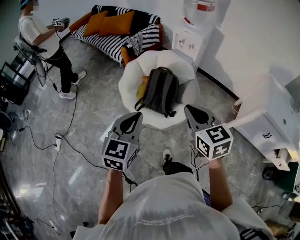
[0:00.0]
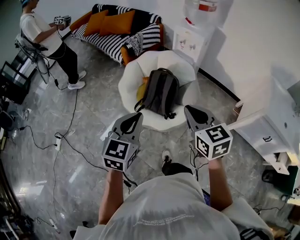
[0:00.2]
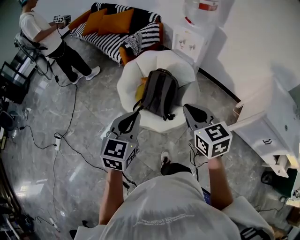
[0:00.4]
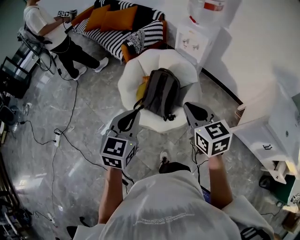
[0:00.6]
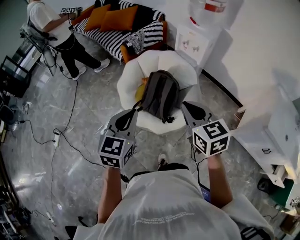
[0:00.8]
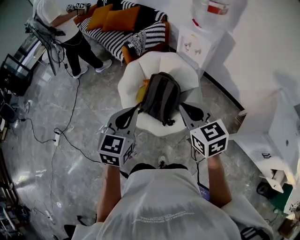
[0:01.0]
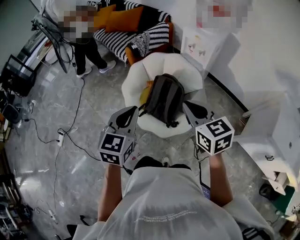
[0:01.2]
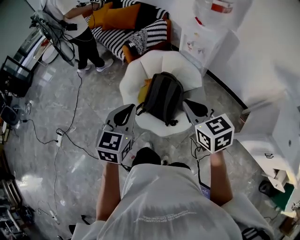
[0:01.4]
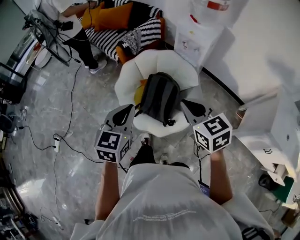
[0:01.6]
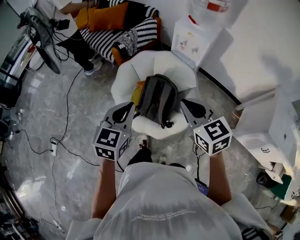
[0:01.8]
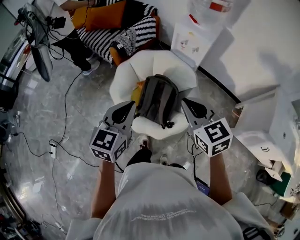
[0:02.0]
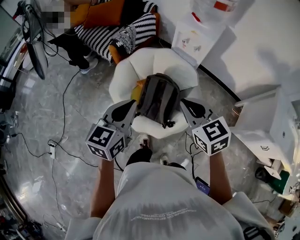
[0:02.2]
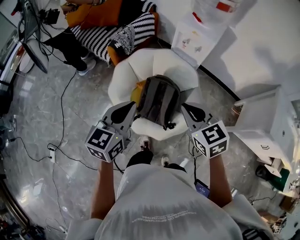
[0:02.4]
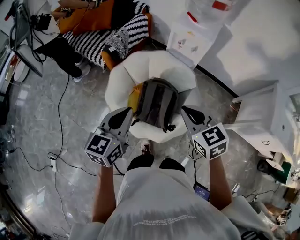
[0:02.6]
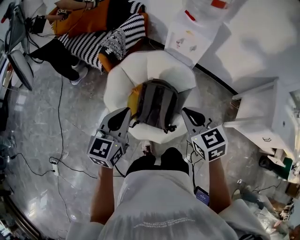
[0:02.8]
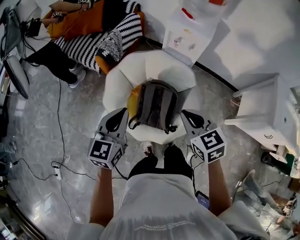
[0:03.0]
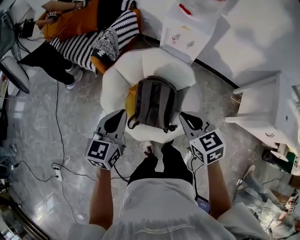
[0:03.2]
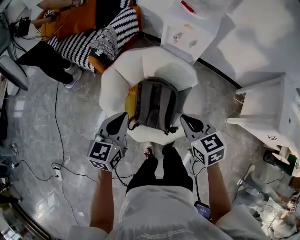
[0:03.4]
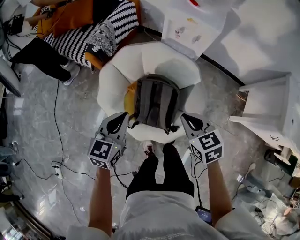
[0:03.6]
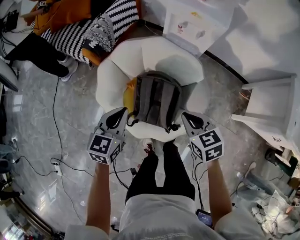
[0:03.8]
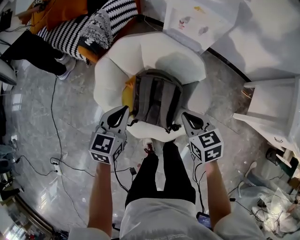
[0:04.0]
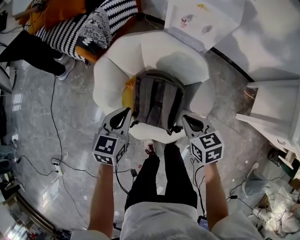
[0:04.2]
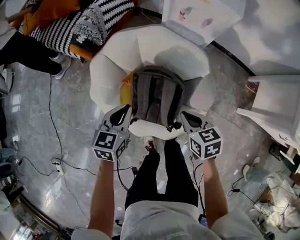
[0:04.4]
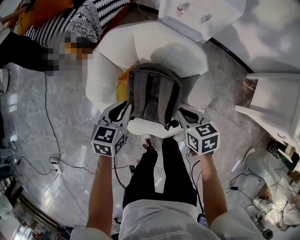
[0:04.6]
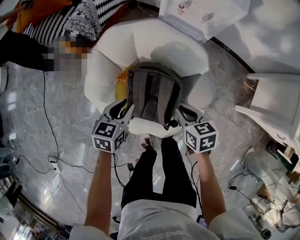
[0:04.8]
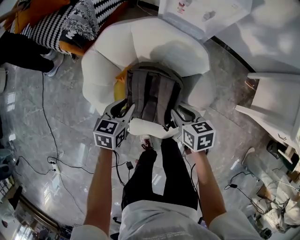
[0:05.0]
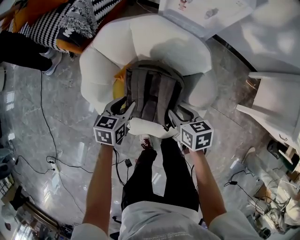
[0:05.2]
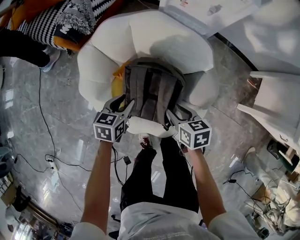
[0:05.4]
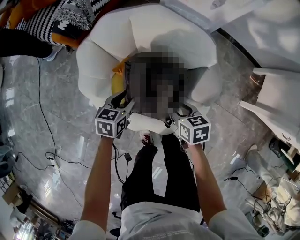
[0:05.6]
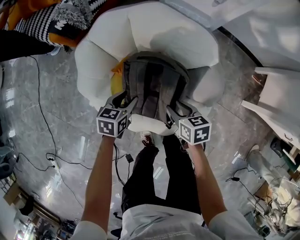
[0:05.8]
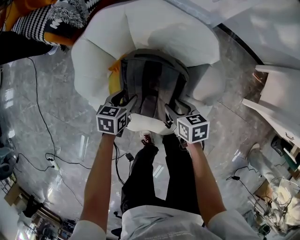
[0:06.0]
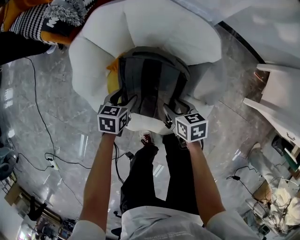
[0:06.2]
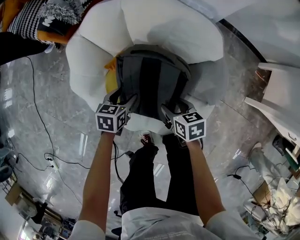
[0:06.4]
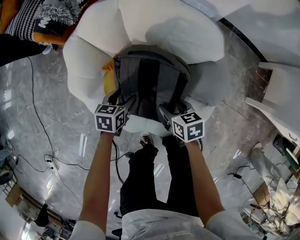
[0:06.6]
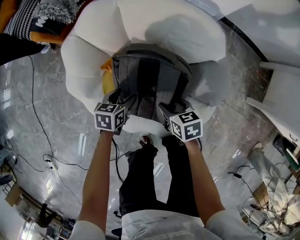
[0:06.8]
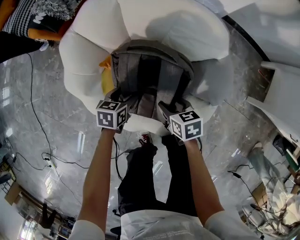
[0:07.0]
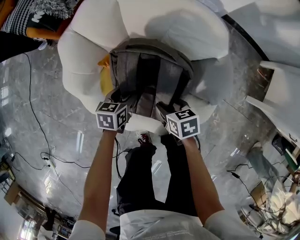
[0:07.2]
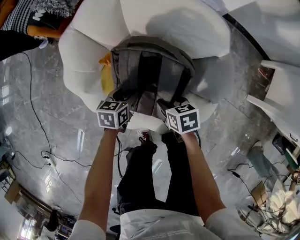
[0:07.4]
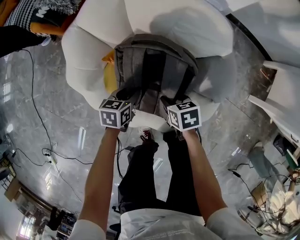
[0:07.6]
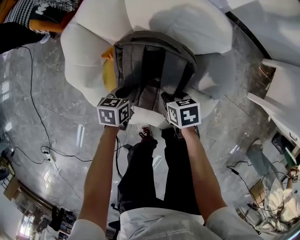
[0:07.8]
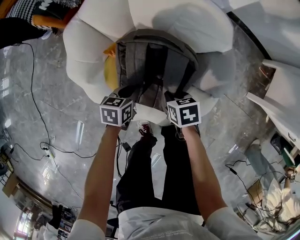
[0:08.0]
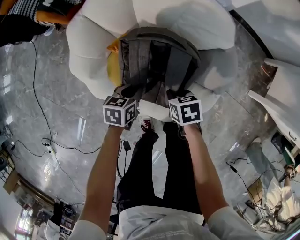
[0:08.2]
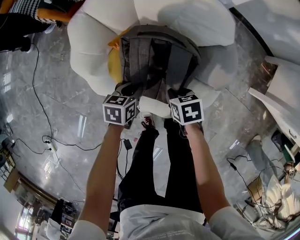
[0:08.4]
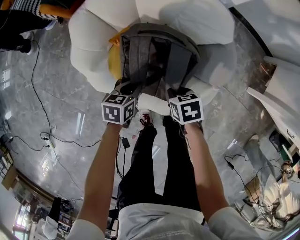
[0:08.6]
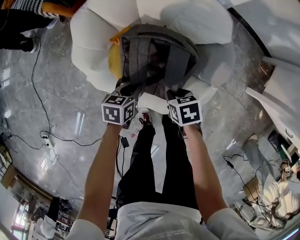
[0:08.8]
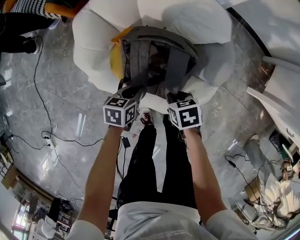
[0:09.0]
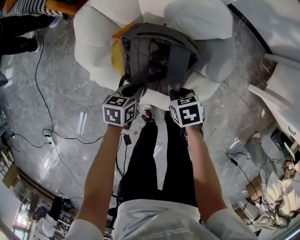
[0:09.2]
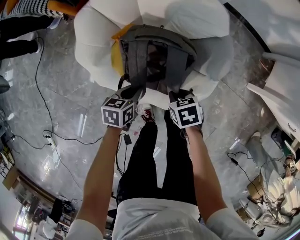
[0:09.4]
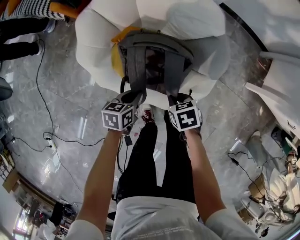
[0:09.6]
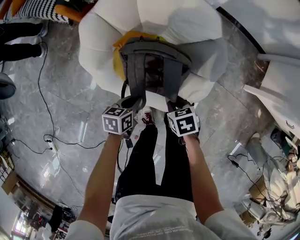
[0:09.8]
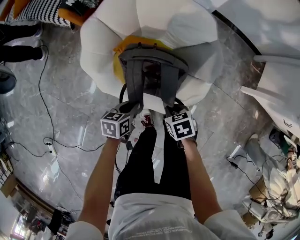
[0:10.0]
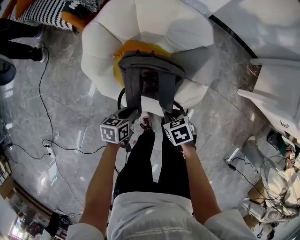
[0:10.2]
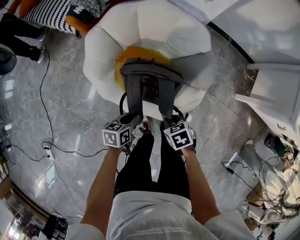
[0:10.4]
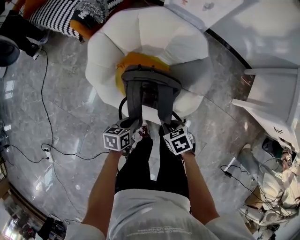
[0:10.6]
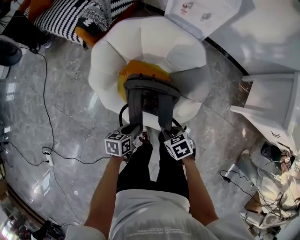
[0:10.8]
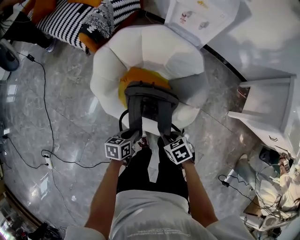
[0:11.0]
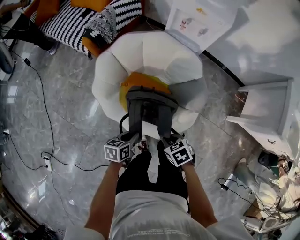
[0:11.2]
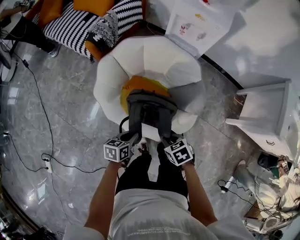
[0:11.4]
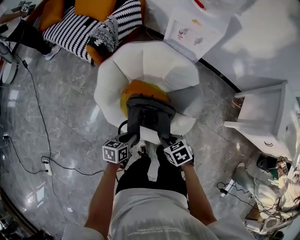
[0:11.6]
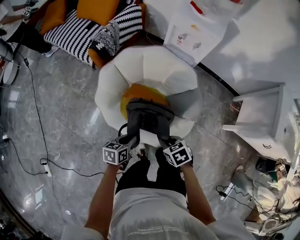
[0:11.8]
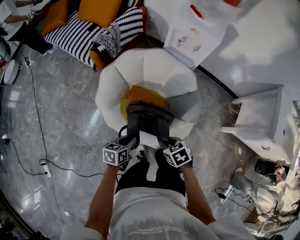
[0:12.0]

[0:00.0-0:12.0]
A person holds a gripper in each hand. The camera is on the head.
0:00.0 to 0:01.6: Both grippers move forward, some 20 cm.
0:01.6 to 0:03.0: The right gripper goes about 15 cm forward, downward and to the left. Meanwhile the left gripper is displaced forward and to the left by roughly 20 cm.
0:03.0 to 0:04.4: The right gripper is displaced downward by roughly 25 cm, and changes its angle by about 30 degrees; the left gripper goes about 30 cm downward and forward, and rotates roughly 20 degrees.
0:04.4 to 0:06.0: Both grippers travel together downward, about 20 cm. The left gripper opens, while the right gripper opens.
0:06.0 to 0:07.6: Both grippers move downward, some 10 cm.
0:07.6 to 0:09.0: The left gripper moves backward and upward, some 10 cm; the right gripper is displaced upward and backward by about 10 cm, and closes its fingers.
0:09.0 to 0:10.4: The two grippers go some 15 cm backward and upward.
0:10.4 to 0:12.0: Both grippers move upward, some 15 cm.

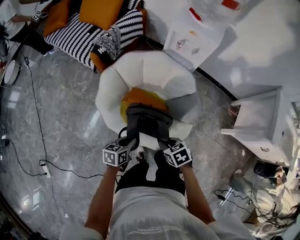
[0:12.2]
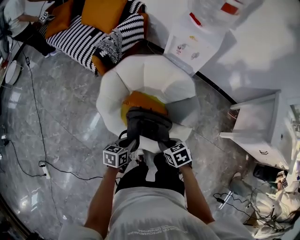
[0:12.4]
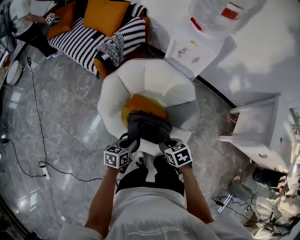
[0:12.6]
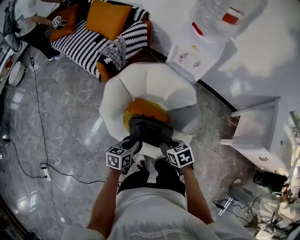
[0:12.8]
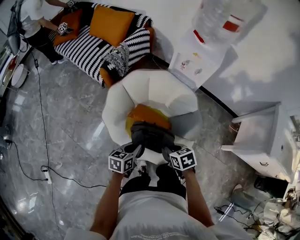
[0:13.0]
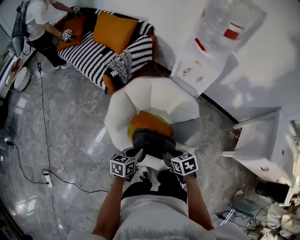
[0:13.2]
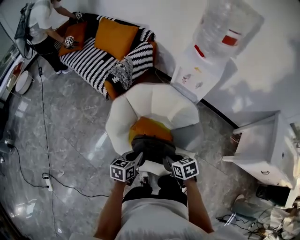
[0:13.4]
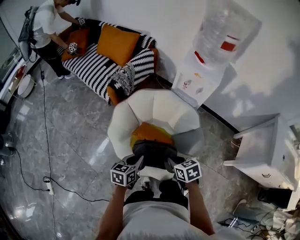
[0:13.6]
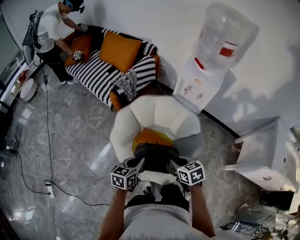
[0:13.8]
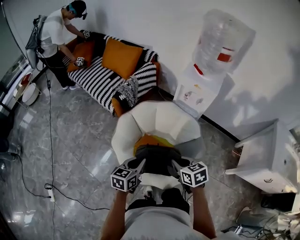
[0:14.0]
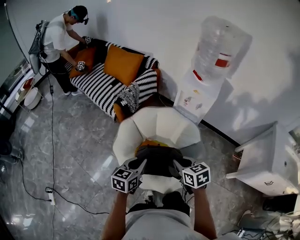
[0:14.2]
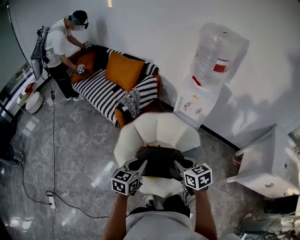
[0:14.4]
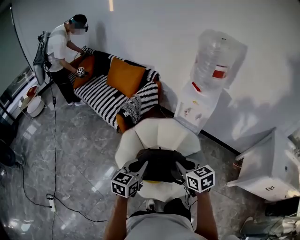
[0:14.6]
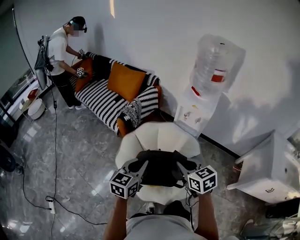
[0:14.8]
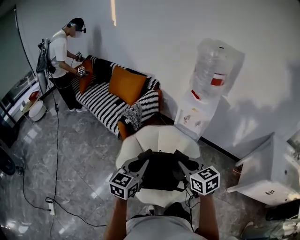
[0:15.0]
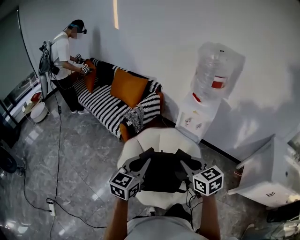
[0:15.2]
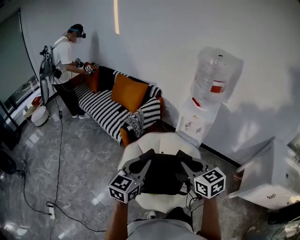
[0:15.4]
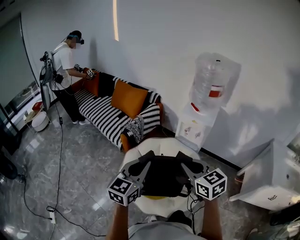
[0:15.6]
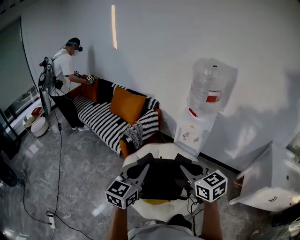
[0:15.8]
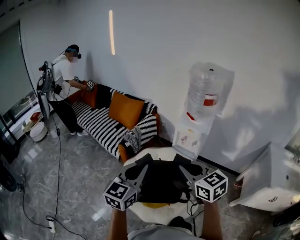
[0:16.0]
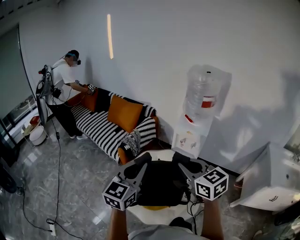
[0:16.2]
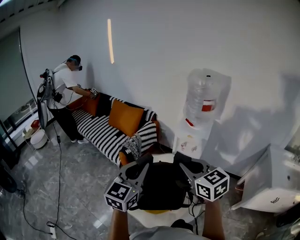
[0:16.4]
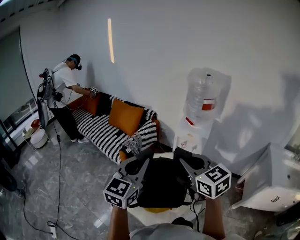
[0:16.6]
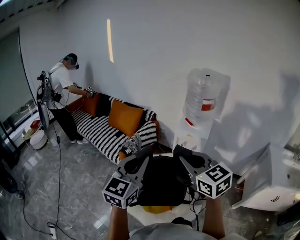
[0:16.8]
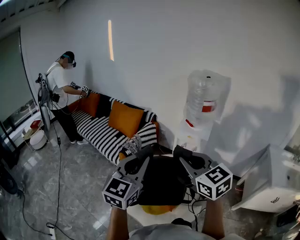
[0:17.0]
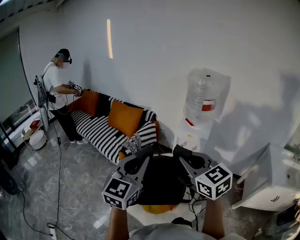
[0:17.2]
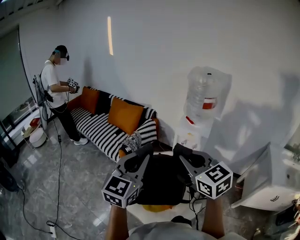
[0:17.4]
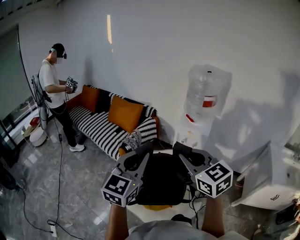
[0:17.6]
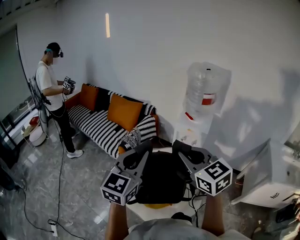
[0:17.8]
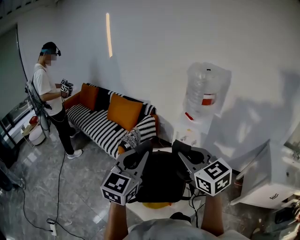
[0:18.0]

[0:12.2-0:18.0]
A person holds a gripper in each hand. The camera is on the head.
0:12.2 to 0:13.6: The grippers both shift upward and forward by approximately 10 cm.
0:13.6 to 0:15.0: Both grippers move upward, roughly 25 cm. The right gripper changes its angle by some 30 degrees; the left gripper changes its angle by some 30 degrees.
0:15.0 to 0:16.6: The two grippers go approximately 20 cm upward. The left gripper rotates about 20 degrees.
0:16.6 to 0:18.0: The grippers move only a little.

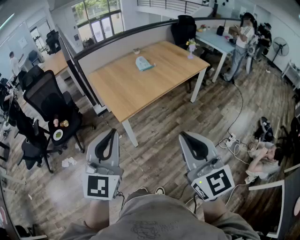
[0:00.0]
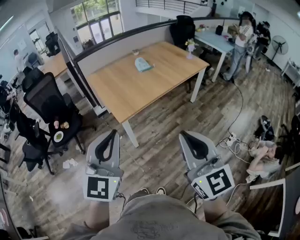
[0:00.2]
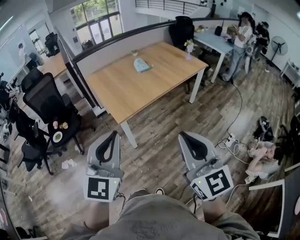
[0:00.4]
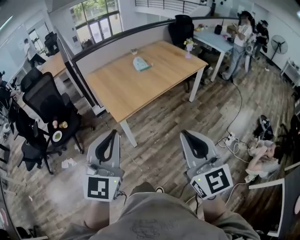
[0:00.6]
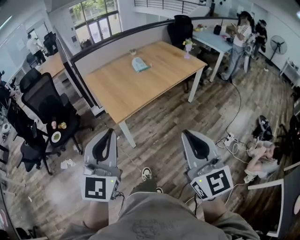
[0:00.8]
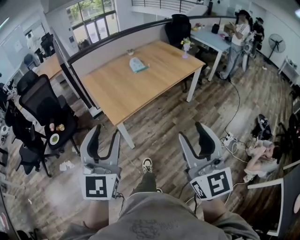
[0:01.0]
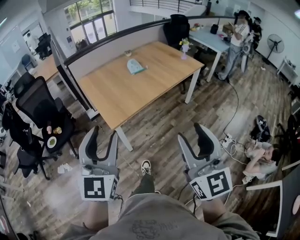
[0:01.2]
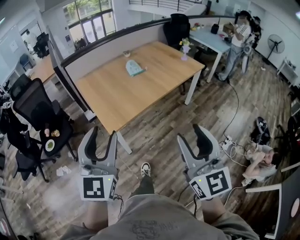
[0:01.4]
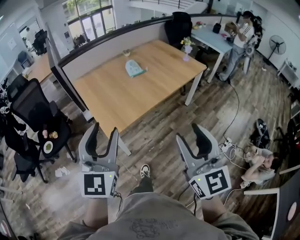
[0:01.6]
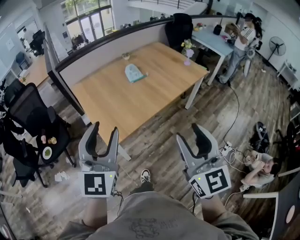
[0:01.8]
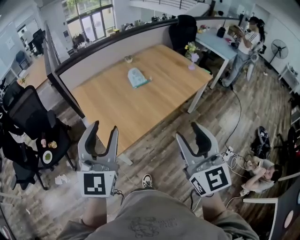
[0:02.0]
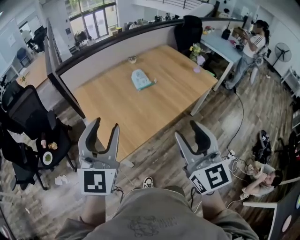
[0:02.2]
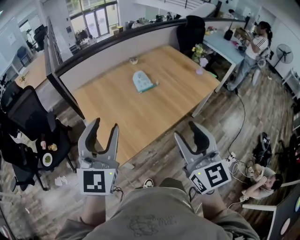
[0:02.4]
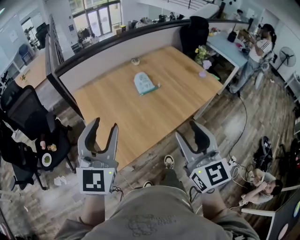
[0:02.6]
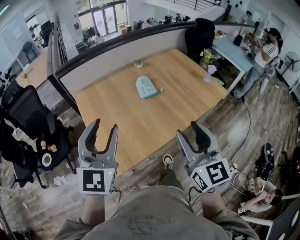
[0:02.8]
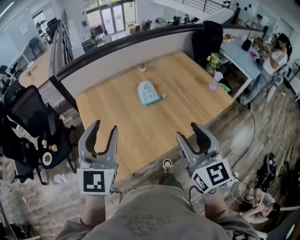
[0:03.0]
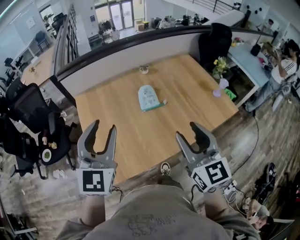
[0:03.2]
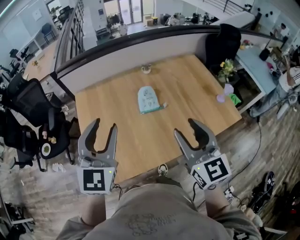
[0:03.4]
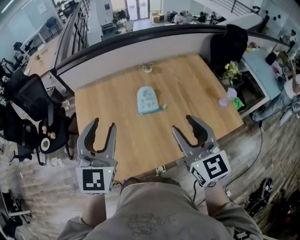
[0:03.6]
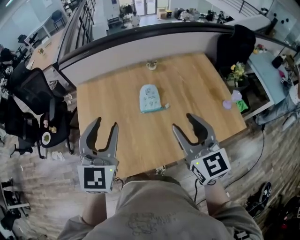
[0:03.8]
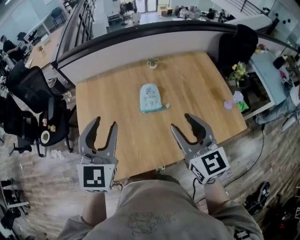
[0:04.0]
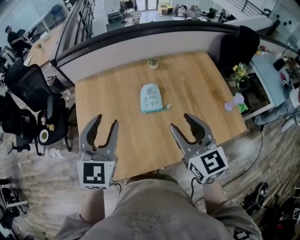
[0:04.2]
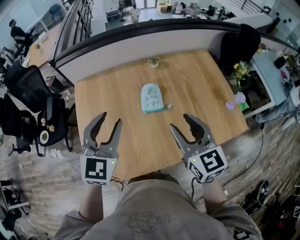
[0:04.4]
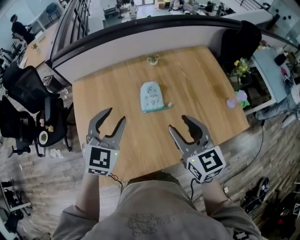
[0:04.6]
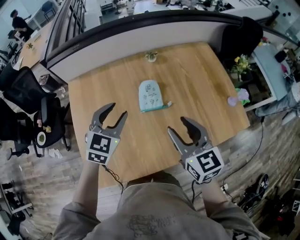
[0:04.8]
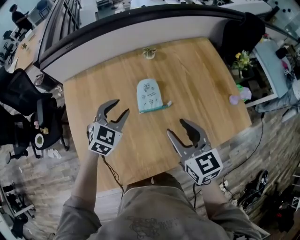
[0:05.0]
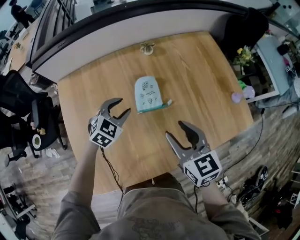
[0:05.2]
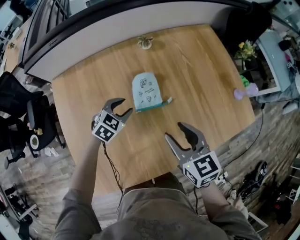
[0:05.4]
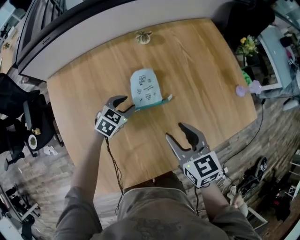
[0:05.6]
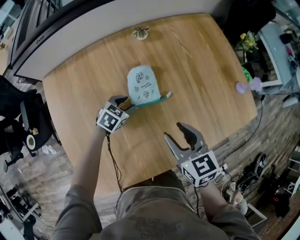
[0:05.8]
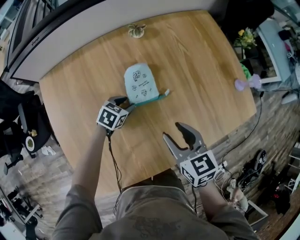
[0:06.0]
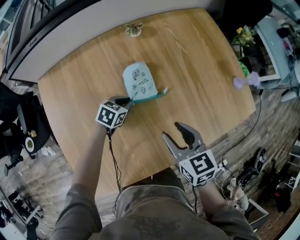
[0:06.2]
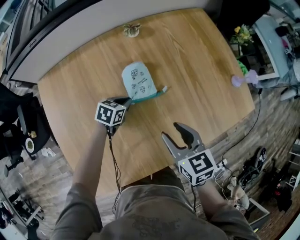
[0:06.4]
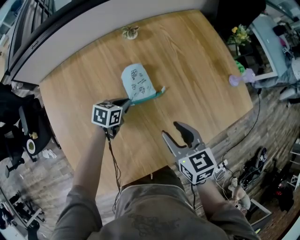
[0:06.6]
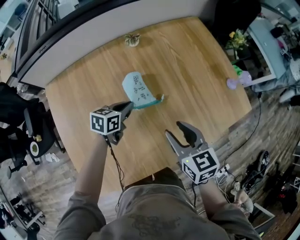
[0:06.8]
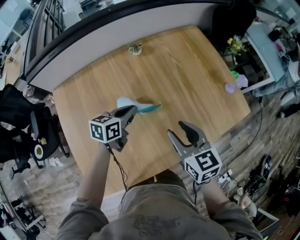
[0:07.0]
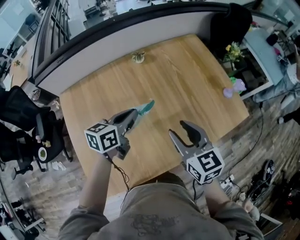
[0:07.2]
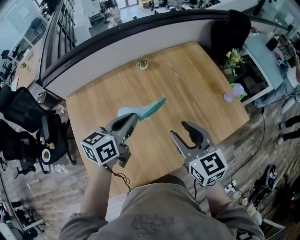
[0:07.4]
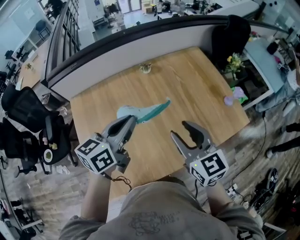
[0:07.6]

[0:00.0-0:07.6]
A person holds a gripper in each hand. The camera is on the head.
0:00.0 to 0:01.6: The grippers both shift forward by about 15 cm. The right gripper opens. Meanwhile the left gripper opens.
0:01.6 to 0:03.0: The grippers both shift forward by about 35 cm.
0:03.0 to 0:04.6: The right gripper goes about 25 cm forward, and turns by roughly 20 degrees, while the left gripper shifts approximately 25 cm forward, to the right and downward.
0:04.6 to 0:06.0: The right gripper travels downward by roughly 20 cm, and changes its angle by about 20 degrees; the left gripper goes roughly 35 cm downward, and points its fingers roughly 30 degrees further downward.
0:06.0 to 0:07.6: The left gripper shifts roughly 40 cm upward, tips its fingers upward by roughly 40 degrees, and closes its fingers. The right gripper shifts roughly 20 cm upward, and swivels approximately 20 degrees.
